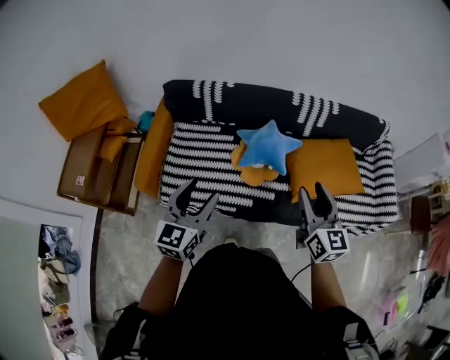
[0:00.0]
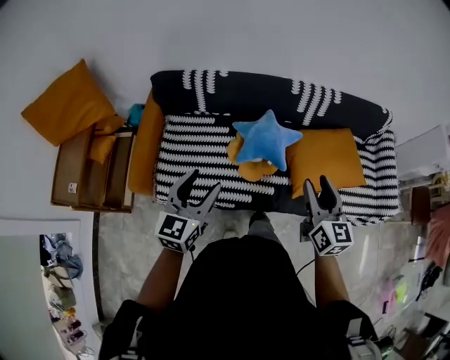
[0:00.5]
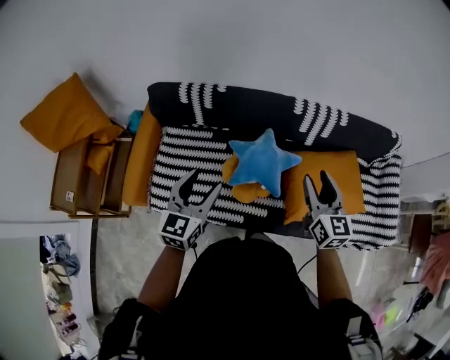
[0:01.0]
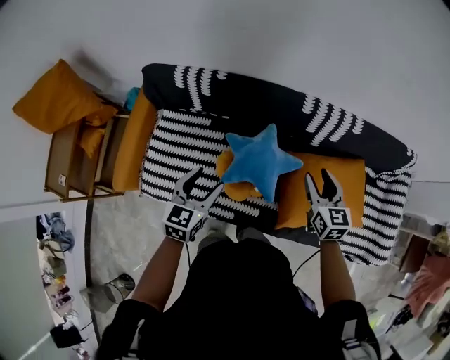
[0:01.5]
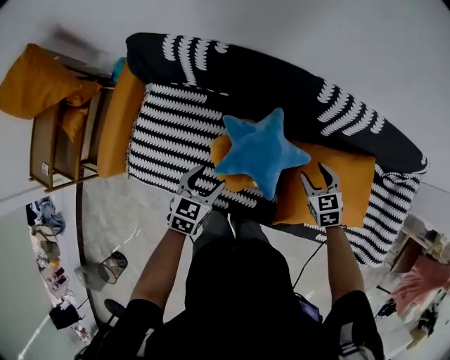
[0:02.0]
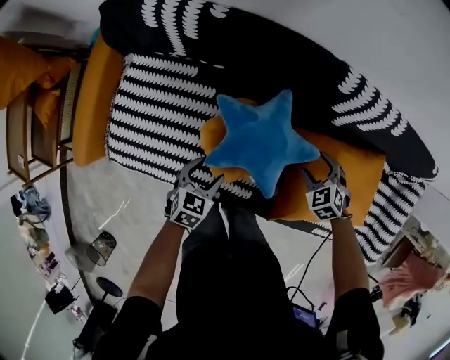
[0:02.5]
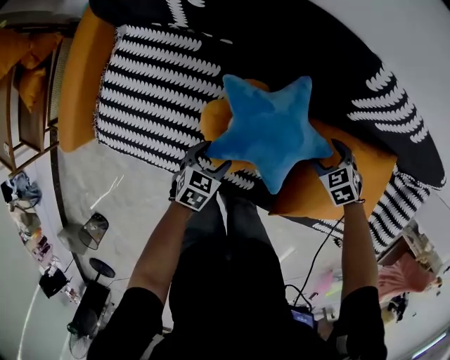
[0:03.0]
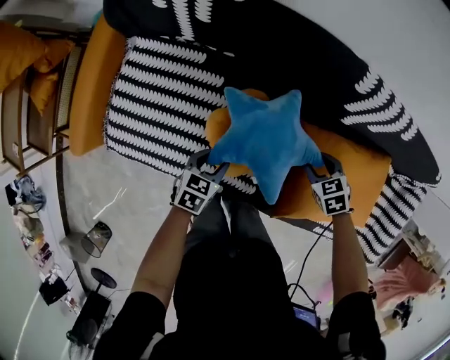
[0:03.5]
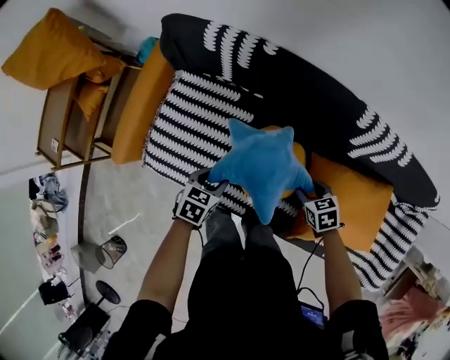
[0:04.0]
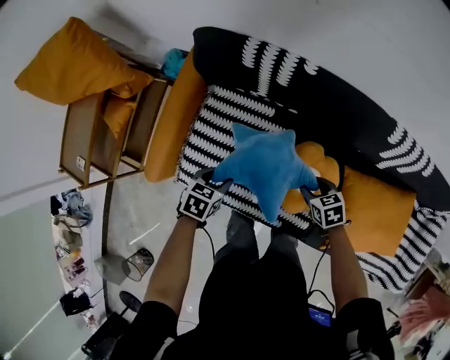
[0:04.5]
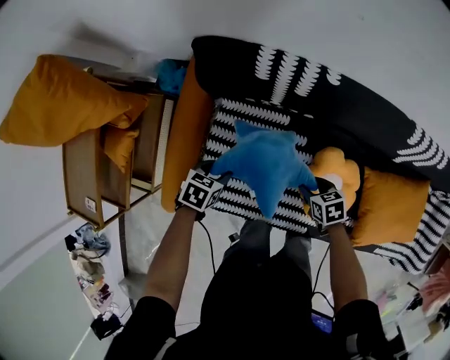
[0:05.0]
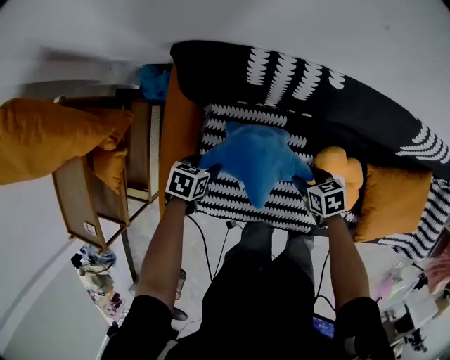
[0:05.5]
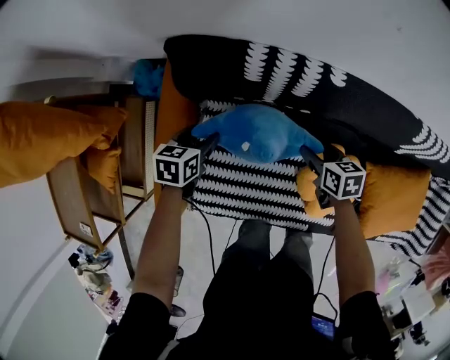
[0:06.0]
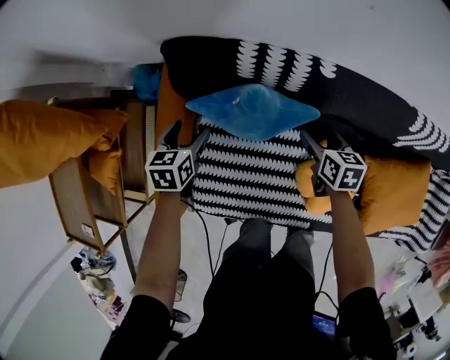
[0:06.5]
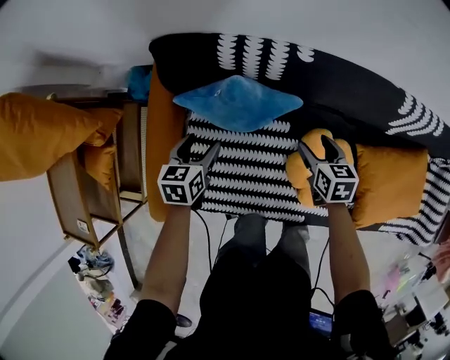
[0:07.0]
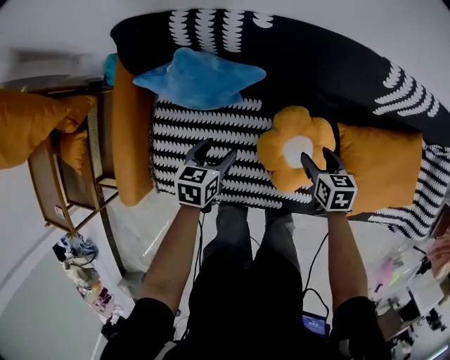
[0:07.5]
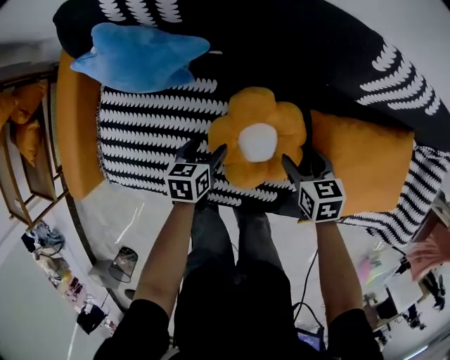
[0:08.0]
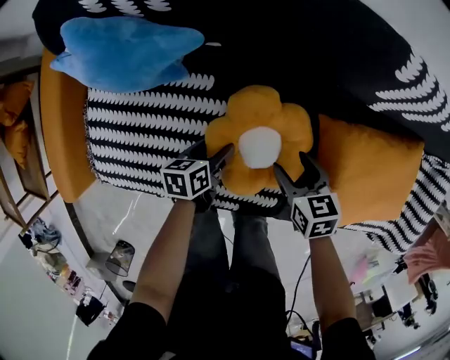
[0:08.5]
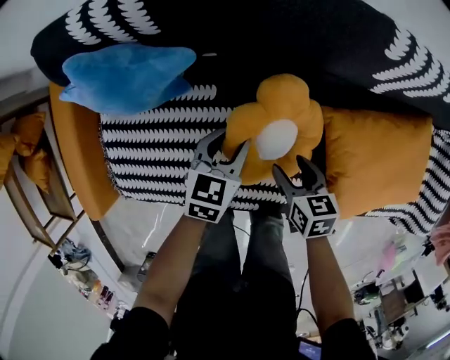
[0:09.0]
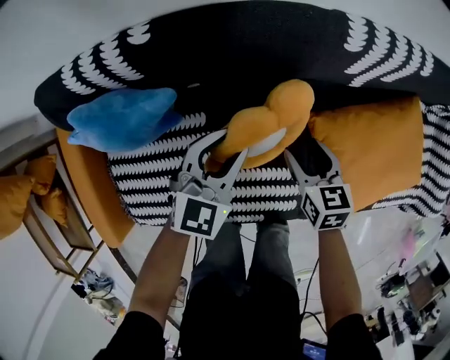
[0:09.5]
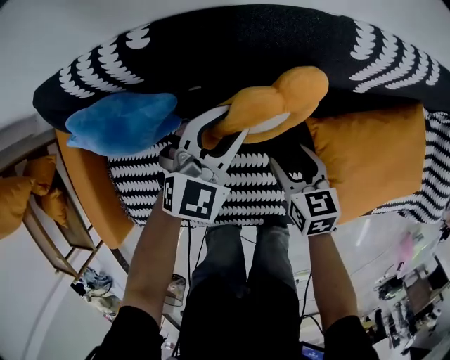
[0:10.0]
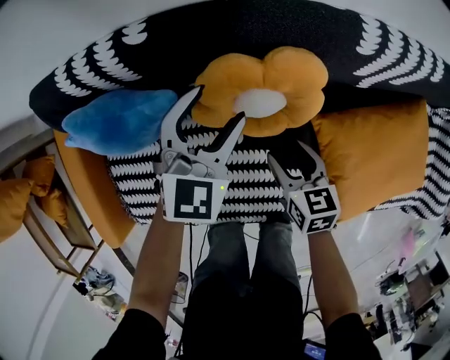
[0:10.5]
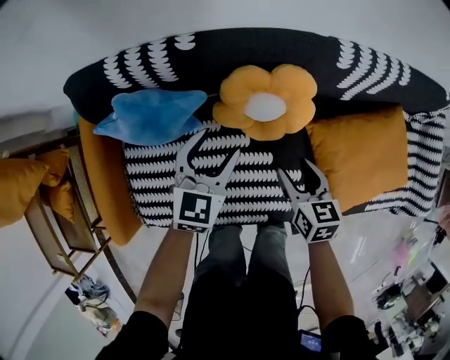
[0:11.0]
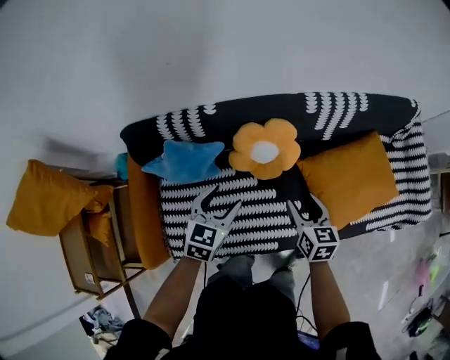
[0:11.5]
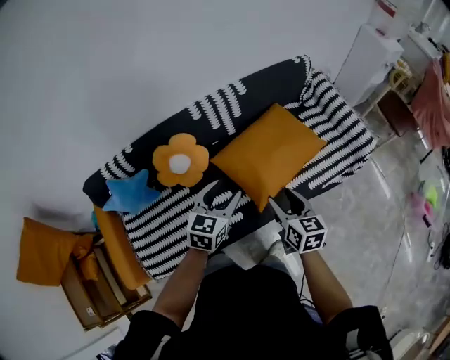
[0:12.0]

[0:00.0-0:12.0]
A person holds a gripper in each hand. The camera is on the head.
0:00.0 to 0:02.0: The two grippers go some 40 cm downward and forward. The right gripper angles its fingers downward, by some 40 degrees; the left gripper tips its fingers downward by roughly 30 degrees.
0:02.0 to 0:04.0: The right gripper moves some 15 cm, and turns by about 20 degrees.
0:04.0 to 0:06.0: The left gripper moves approximately 40 cm, while the right gripper shifts by some 30 cm, and swivels roughly 30 degrees.
0:06.0 to 0:08.0: The two grippers go roughly 35 cm to the right and backward.
0:08.0 to 0:10.0: The left gripper heads forward, upward and to the right, covering roughly 25 cm, rolls clockwise, seen from behind, by roughly 70 degrees, and closes its fingers, while the right gripper heads forward, covering some 5 cm.
0:10.0 to 0:12.0: The right gripper moves roughly 50 cm, and turns by about 40 degrees; the left gripper ends up approximately 40 cm from where it was.

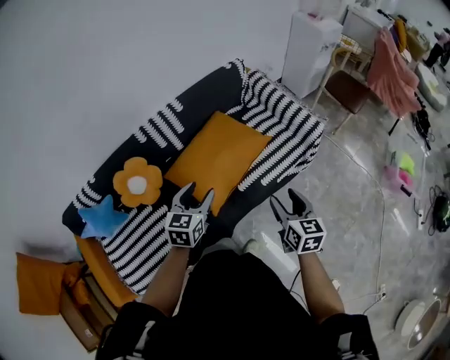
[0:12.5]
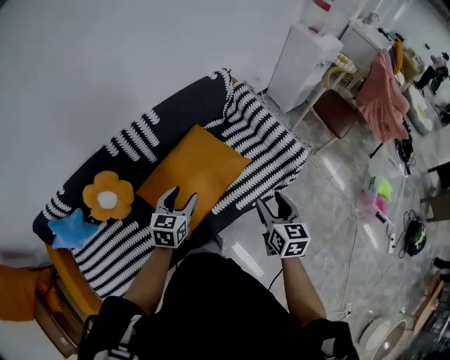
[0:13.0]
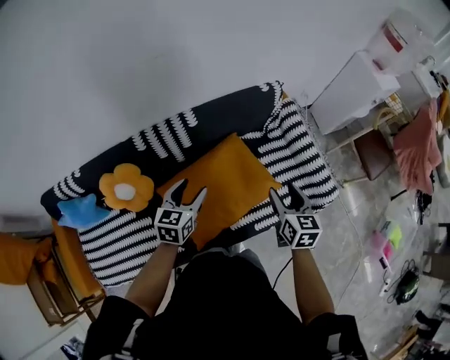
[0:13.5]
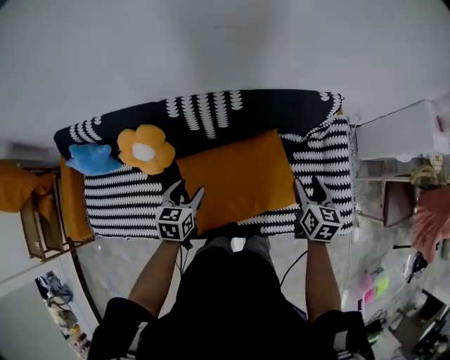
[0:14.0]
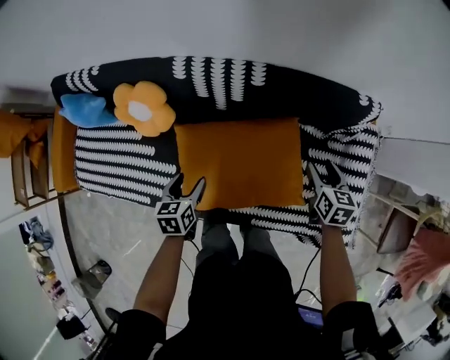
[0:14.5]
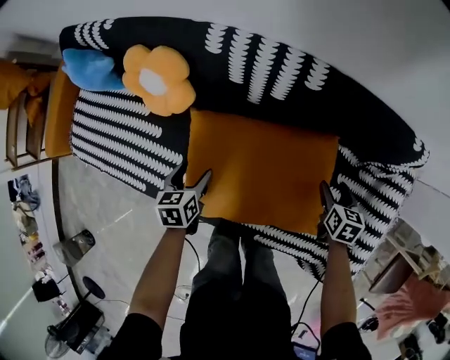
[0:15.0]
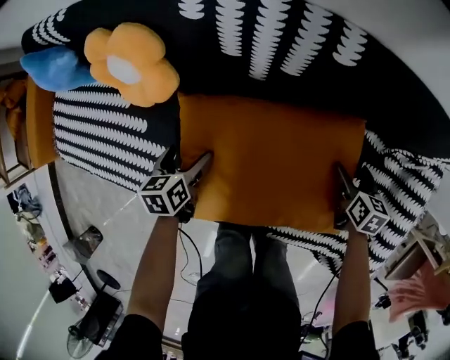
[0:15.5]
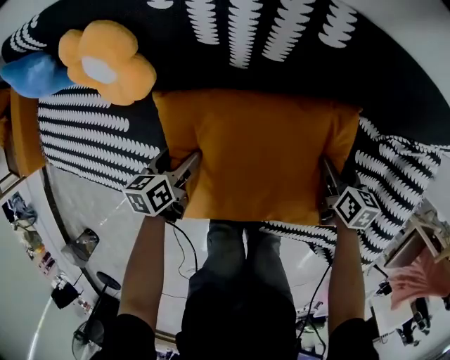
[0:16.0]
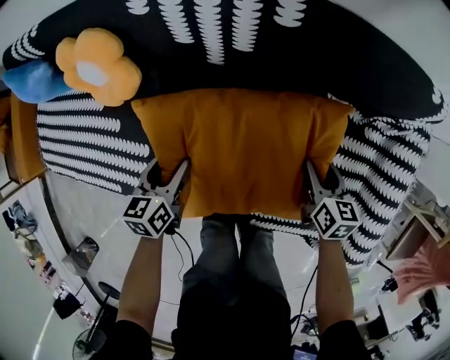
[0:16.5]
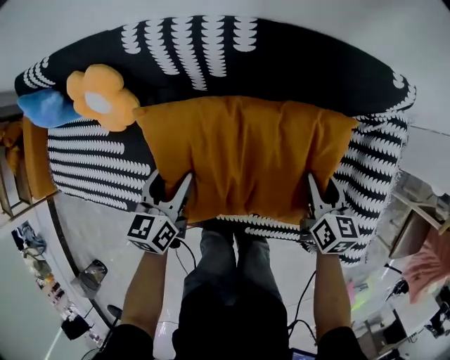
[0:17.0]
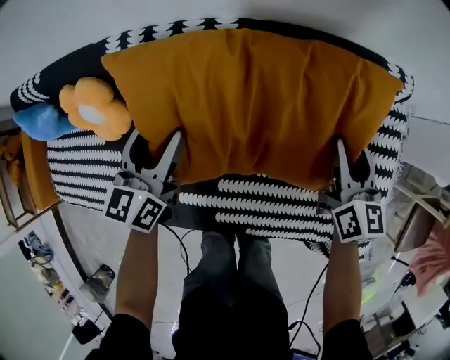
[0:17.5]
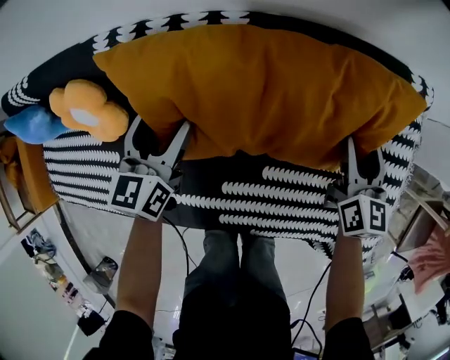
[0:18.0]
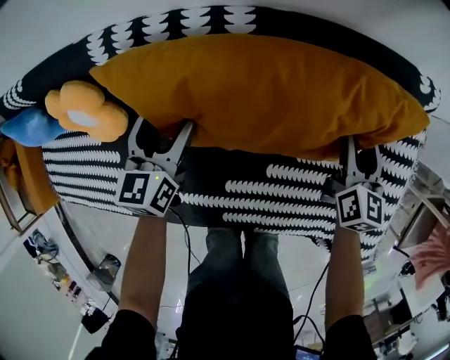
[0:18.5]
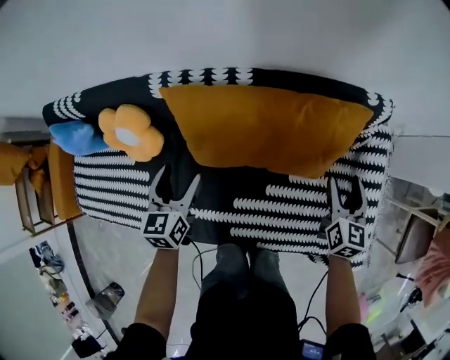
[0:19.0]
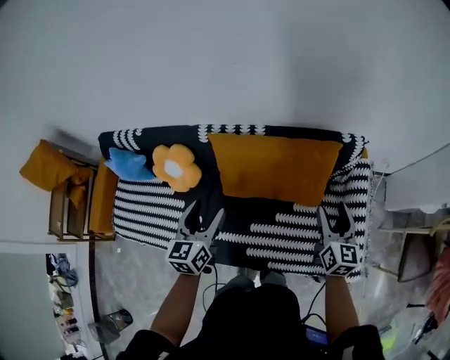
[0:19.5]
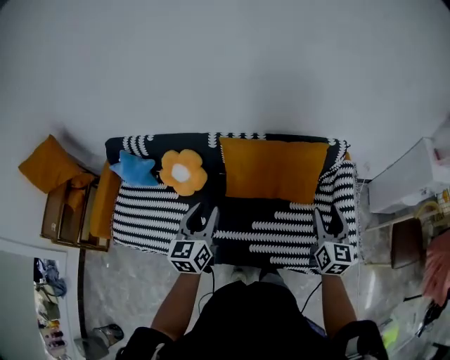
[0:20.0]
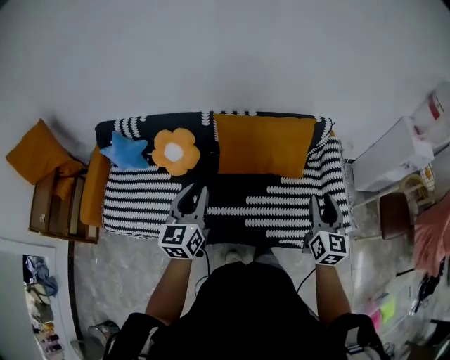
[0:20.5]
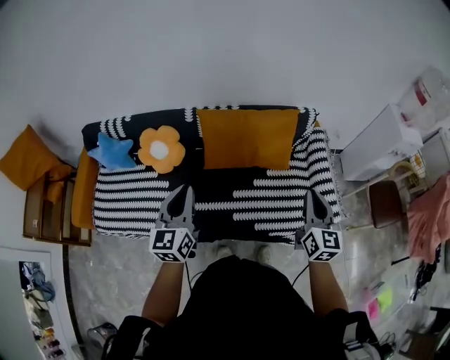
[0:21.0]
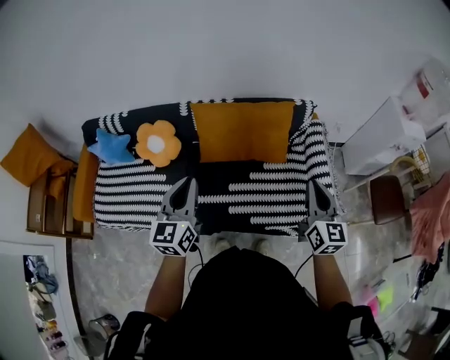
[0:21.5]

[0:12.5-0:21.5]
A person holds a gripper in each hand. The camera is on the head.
0:12.5 to 0:14.5: The left gripper goes about 20 cm downward, and swivels roughly 70 degrees, while the right gripper ends up about 50 cm from where it was, and rotates some 40 degrees.
0:14.5 to 0:17.0: The left gripper reaches approximately 20 cm downward, then returns, while the right gripper moves downward, about 10 cm.
0:17.0 to 0:19.5: The left gripper goes up and down, approximately 30 cm each way, reversing 2 times, while the right gripper swings up and down, approximately 25 cm each way, with 2 reversals, and changes its angle by approximately 20 degrees.
0:19.5 to 0:21.5: Both grippers move backward and upward, roughly 25 cm. The left gripper closes its fingers, while the right gripper closes.

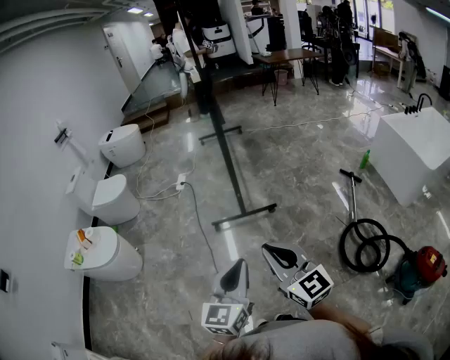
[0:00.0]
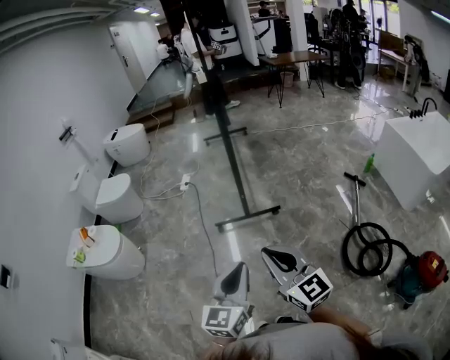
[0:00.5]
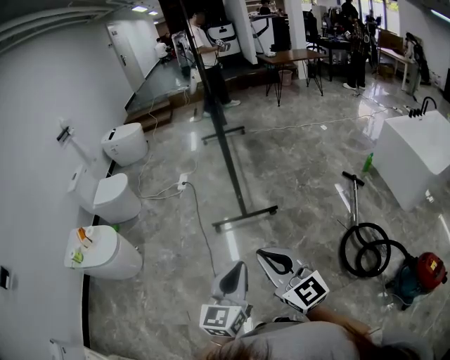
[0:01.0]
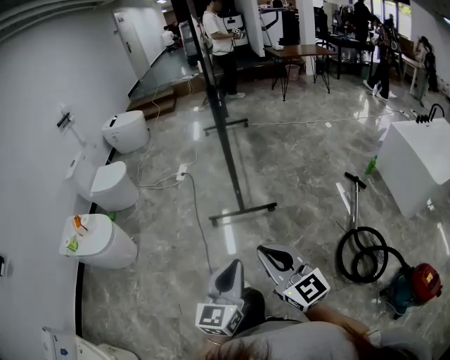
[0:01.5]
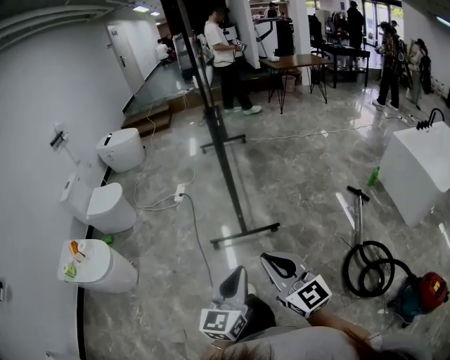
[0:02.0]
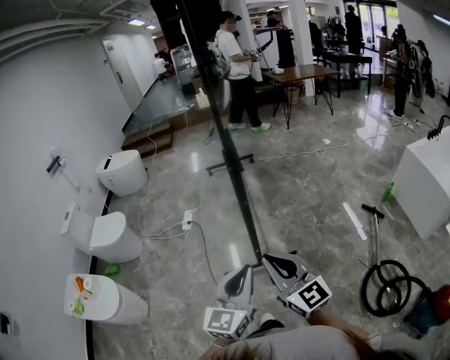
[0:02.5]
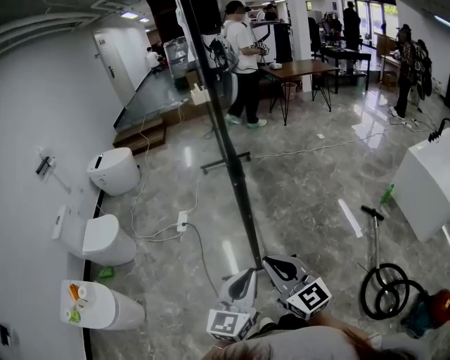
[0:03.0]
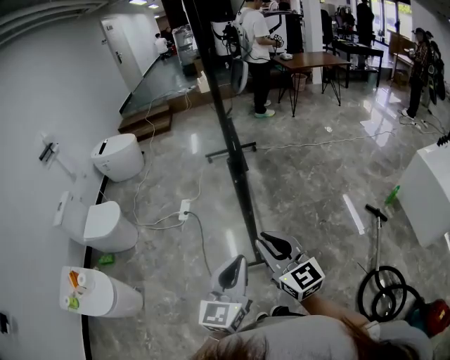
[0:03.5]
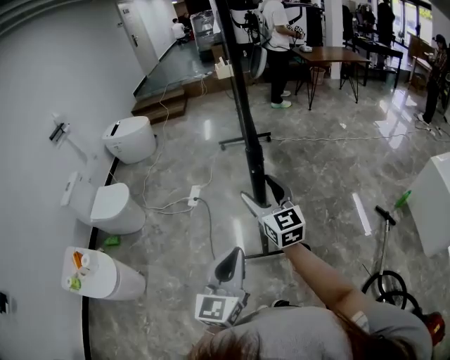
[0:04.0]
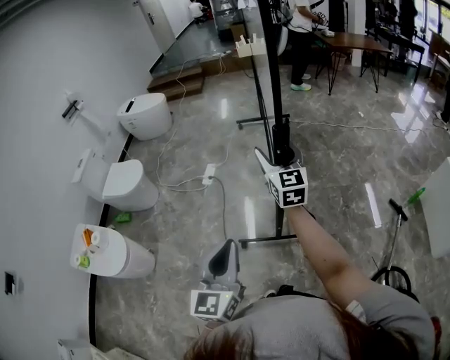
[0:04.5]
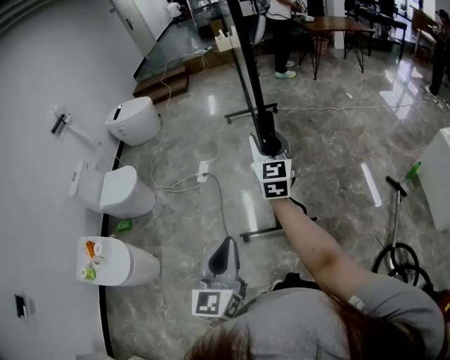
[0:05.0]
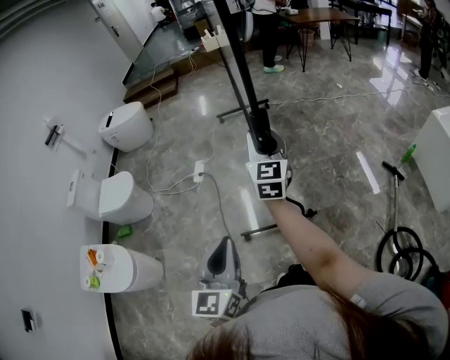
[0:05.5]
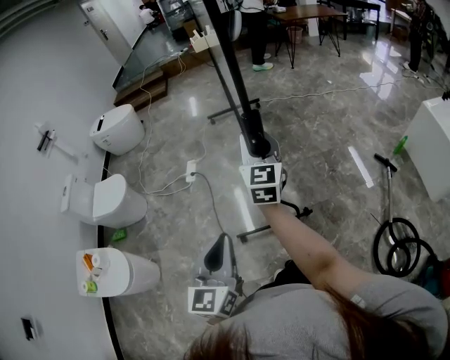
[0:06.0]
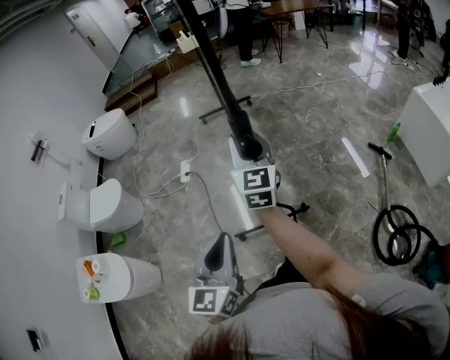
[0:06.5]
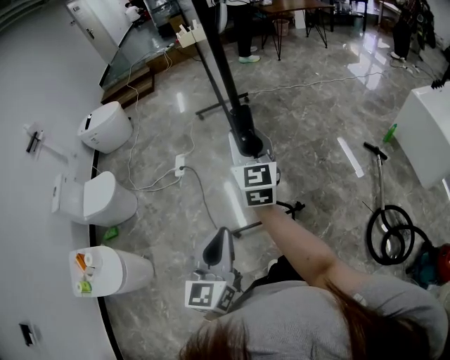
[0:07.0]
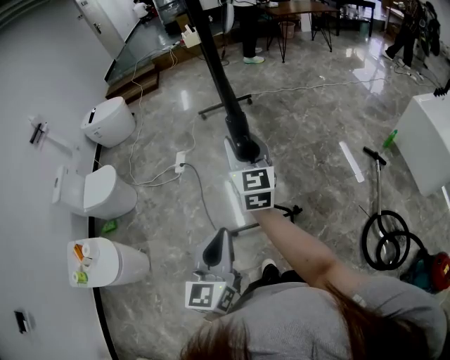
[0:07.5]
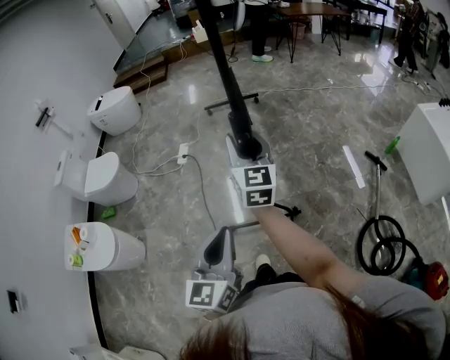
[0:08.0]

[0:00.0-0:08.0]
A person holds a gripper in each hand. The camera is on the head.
0:00.0 to 0:02.0: The two grippers go about 10 cm forward.
0:02.0 to 0:04.0: The right gripper travels forward by approximately 50 cm, and opens its fingers. Meanwhile the left gripper goes about 30 cm forward.
0:04.0 to 0:06.0: The left gripper moves to the left, roughly 5 cm; the right gripper rotates approximately 20 degrees, and closes its fingers.
0:06.0 to 0:08.0: The right gripper heads backward, covering some 10 cm. Meanwhile the left gripper is displaced backward and to the right by about 10 cm.
